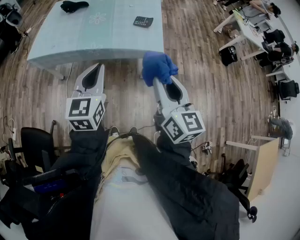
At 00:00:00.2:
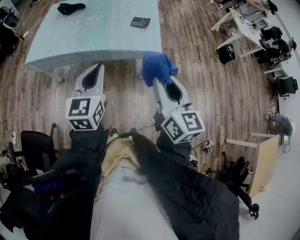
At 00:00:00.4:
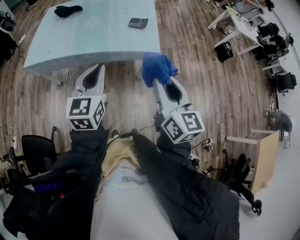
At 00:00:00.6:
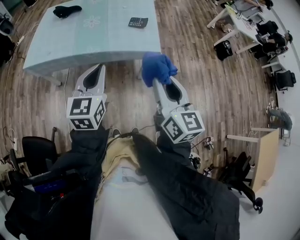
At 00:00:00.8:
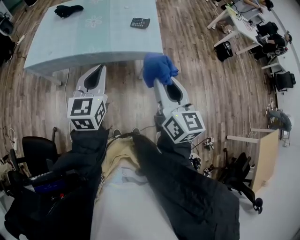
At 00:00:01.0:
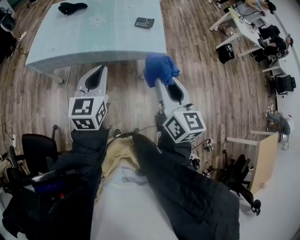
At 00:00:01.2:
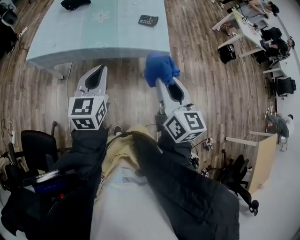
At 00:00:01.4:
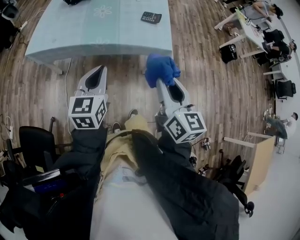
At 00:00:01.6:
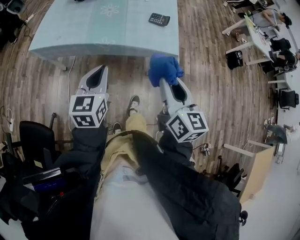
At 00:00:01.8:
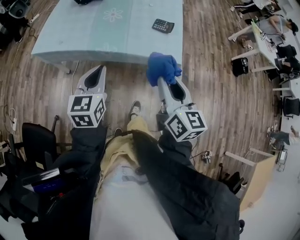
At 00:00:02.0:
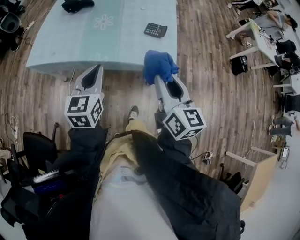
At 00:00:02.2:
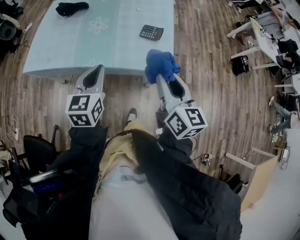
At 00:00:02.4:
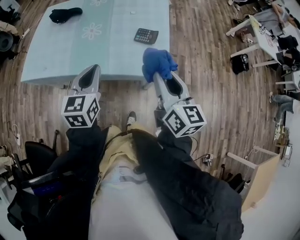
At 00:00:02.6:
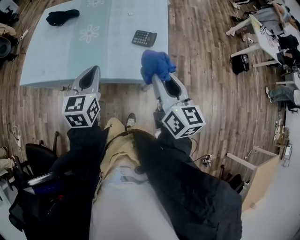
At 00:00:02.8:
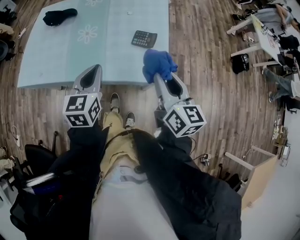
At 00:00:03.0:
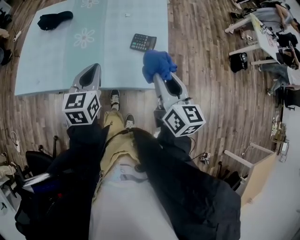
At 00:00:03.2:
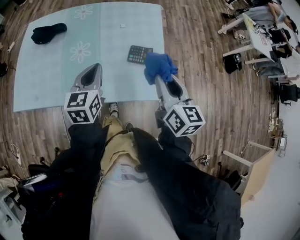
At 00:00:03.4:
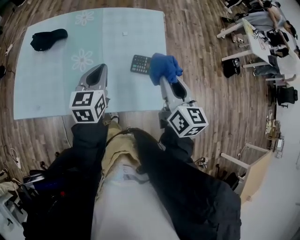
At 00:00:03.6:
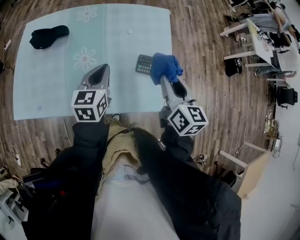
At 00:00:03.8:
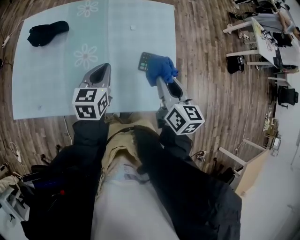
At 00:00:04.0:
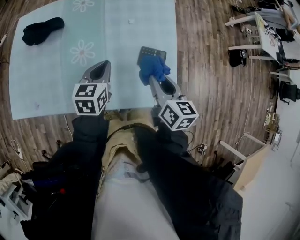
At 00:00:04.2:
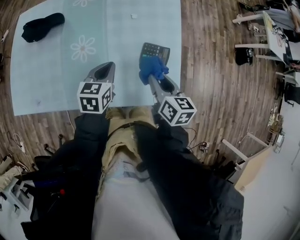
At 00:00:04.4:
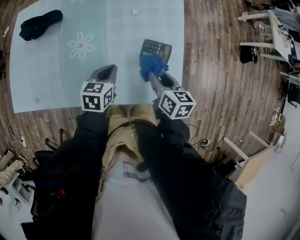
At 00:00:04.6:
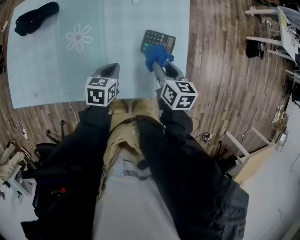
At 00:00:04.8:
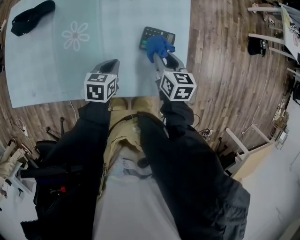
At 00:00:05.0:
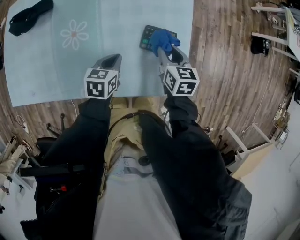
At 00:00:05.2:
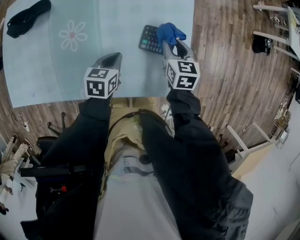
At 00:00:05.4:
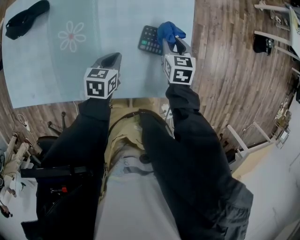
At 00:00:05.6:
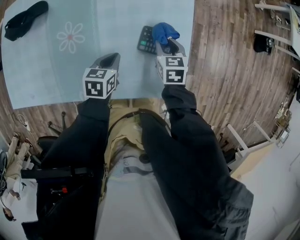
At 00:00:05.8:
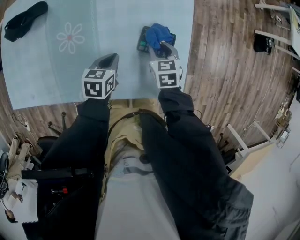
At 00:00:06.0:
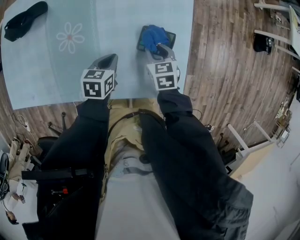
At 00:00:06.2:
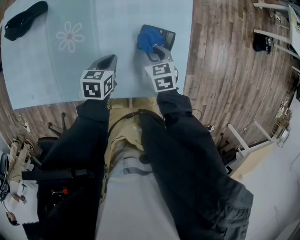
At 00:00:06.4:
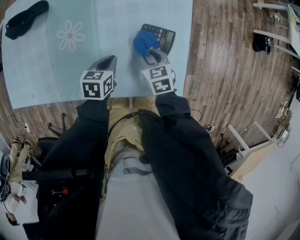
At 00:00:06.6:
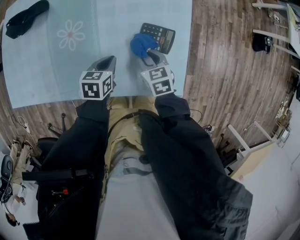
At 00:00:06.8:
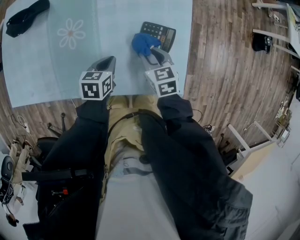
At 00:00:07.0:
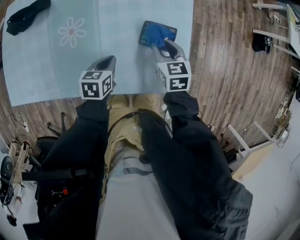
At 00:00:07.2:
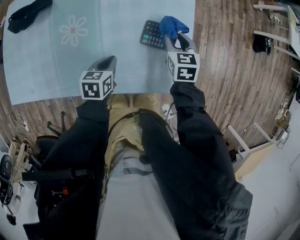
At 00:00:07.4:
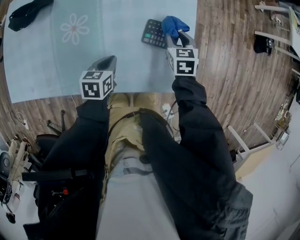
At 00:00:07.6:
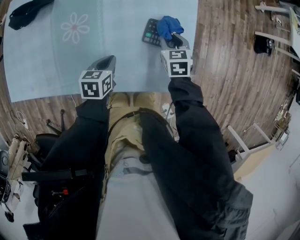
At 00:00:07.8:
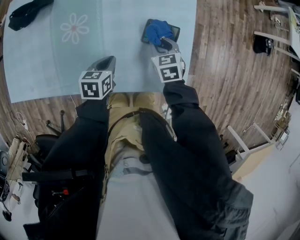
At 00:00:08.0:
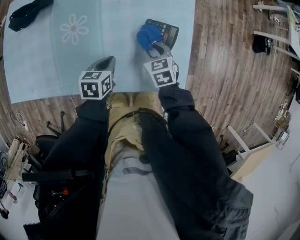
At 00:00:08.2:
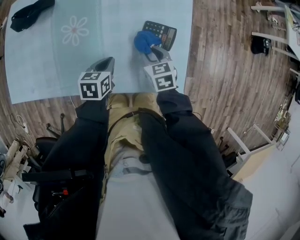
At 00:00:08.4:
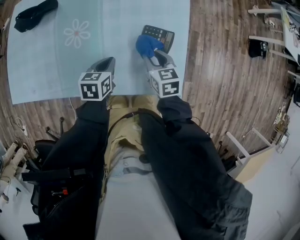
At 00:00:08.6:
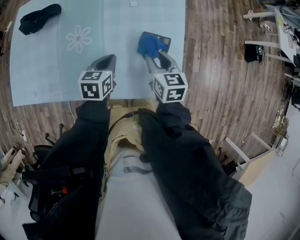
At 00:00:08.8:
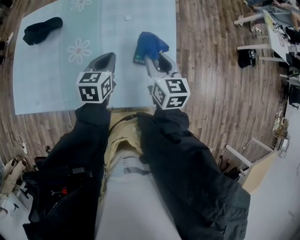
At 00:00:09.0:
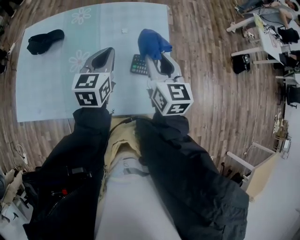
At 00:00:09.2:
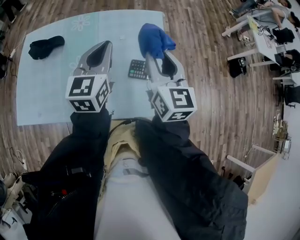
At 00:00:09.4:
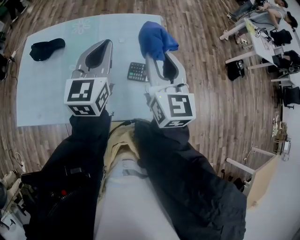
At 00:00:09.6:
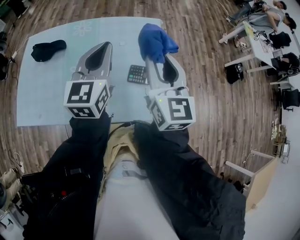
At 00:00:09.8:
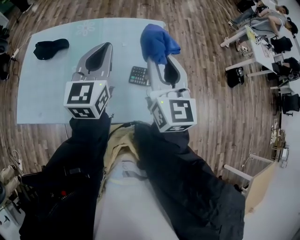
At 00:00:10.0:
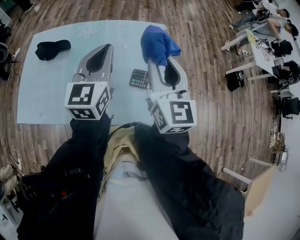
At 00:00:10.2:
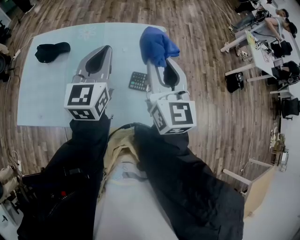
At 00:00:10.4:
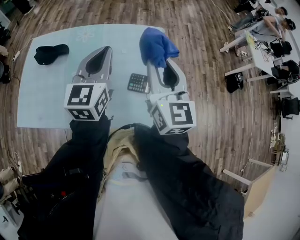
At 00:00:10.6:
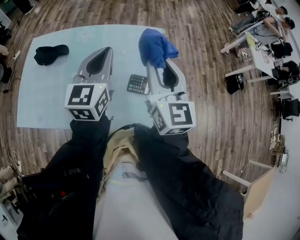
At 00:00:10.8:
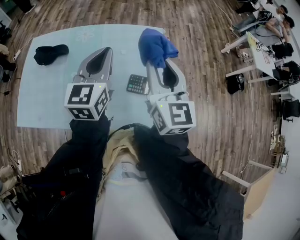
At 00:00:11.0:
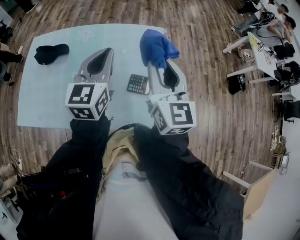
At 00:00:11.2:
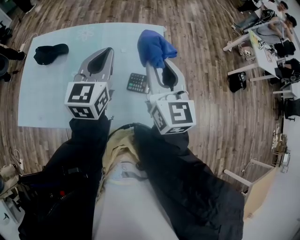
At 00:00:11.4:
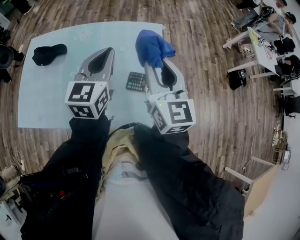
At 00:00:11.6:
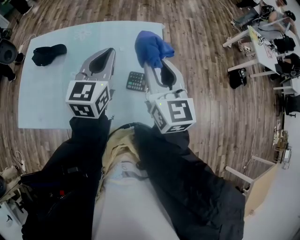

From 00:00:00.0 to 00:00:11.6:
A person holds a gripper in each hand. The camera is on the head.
From 00:00:00.0 to 00:00:01.4: The left gripper moves to the left and downward, roughly 10 cm. The right gripper travels to the left by roughly 5 cm.
From 00:00:01.4 to 00:00:02.8: The two grippers go about 30 cm forward.
From 00:00:02.8 to 00:00:04.4: The left gripper travels forward and downward by about 25 cm, and swivels about 30 degrees. Meanwhile the right gripper shifts about 30 cm forward, downward and to the left, and swivels roughly 30 degrees.
From 00:00:04.4 to 00:00:05.8: The left gripper moves downward, some 10 cm. Meanwhile the right gripper shifts approximately 15 cm downward and forward, and rotates roughly 30 degrees.
From 00:00:05.8 to 00:00:07.2: The right gripper travels backward and back again, approximately 5 cm each way.
From 00:00:07.2 to 00:00:08.8: The left gripper shifts some 15 cm upward and forward, and swivels about 20 degrees, while the right gripper shifts roughly 15 cm upward, and changes its angle by about 20 degrees.
From 00:00:08.8 to 00:00:10.2: The grippers both shift upward by about 25 cm. The left gripper tilts its fingers approximately 30 degrees upward, while the right gripper rotates roughly 30 degrees.
From 00:00:10.2 to 00:00:11.6: There are only small adjustments of the grippers.

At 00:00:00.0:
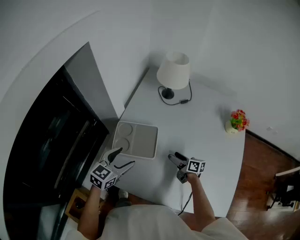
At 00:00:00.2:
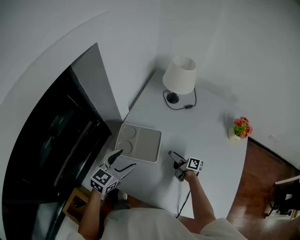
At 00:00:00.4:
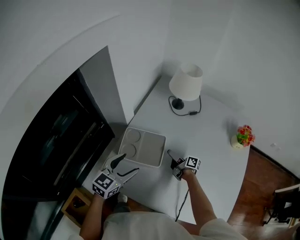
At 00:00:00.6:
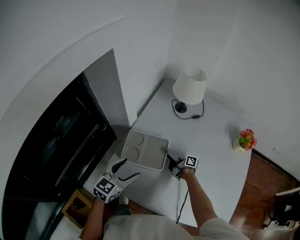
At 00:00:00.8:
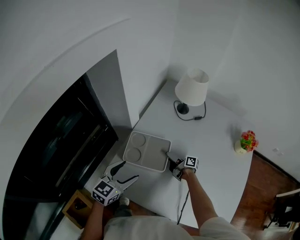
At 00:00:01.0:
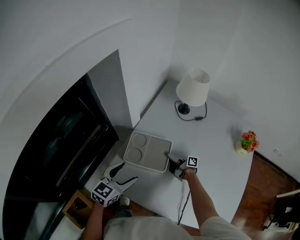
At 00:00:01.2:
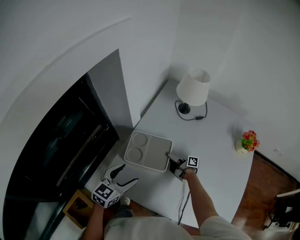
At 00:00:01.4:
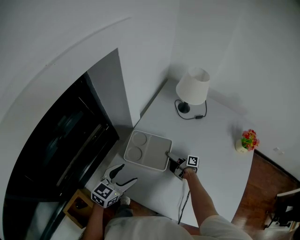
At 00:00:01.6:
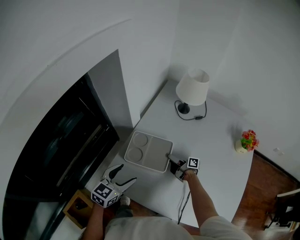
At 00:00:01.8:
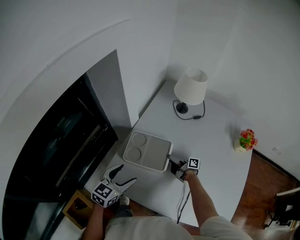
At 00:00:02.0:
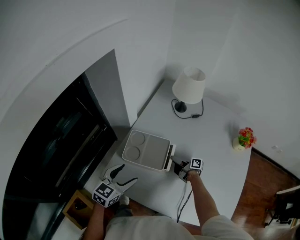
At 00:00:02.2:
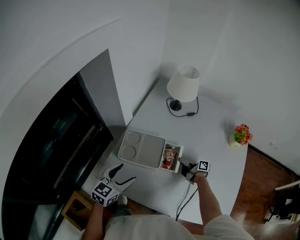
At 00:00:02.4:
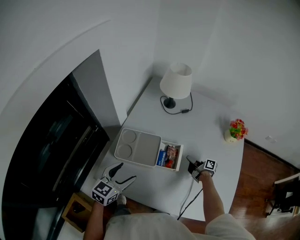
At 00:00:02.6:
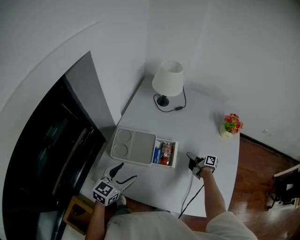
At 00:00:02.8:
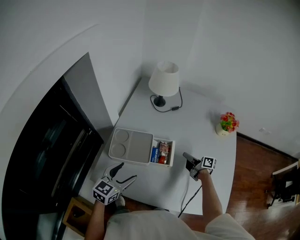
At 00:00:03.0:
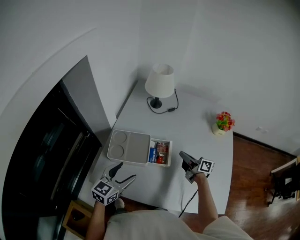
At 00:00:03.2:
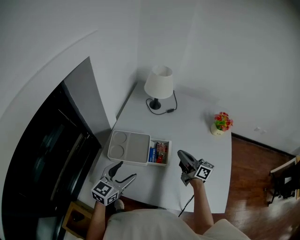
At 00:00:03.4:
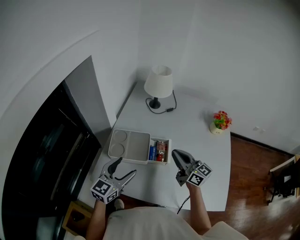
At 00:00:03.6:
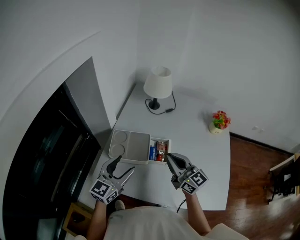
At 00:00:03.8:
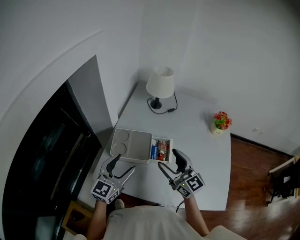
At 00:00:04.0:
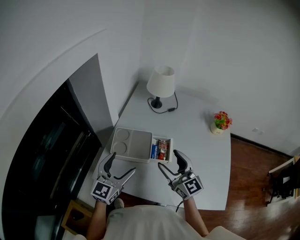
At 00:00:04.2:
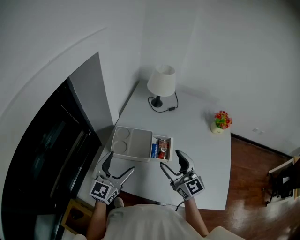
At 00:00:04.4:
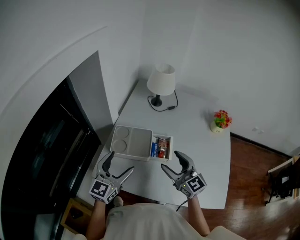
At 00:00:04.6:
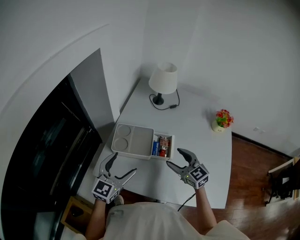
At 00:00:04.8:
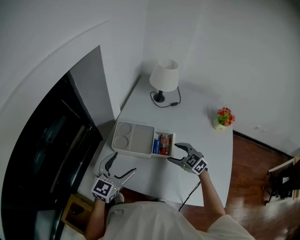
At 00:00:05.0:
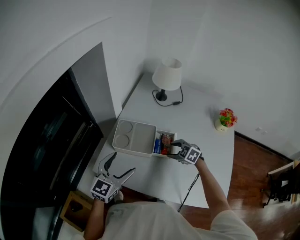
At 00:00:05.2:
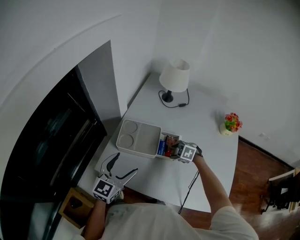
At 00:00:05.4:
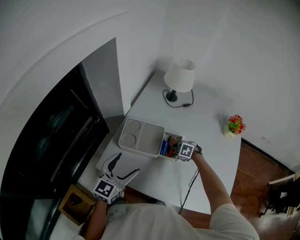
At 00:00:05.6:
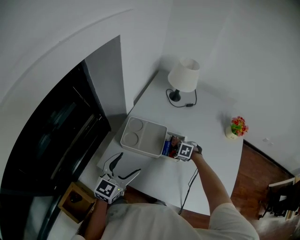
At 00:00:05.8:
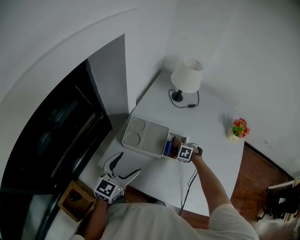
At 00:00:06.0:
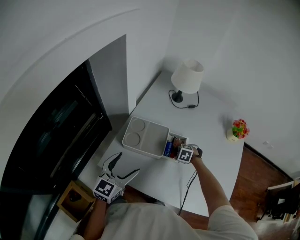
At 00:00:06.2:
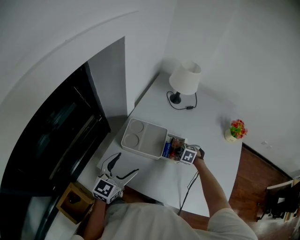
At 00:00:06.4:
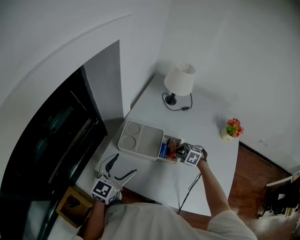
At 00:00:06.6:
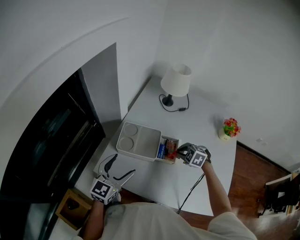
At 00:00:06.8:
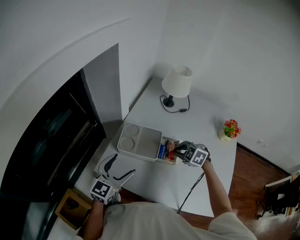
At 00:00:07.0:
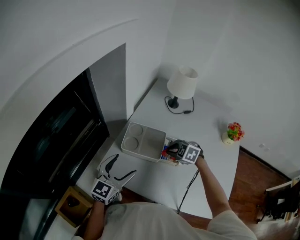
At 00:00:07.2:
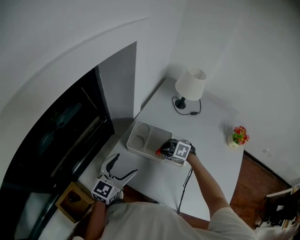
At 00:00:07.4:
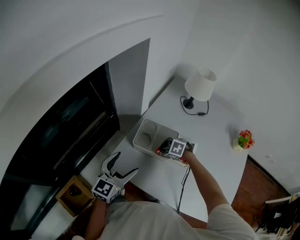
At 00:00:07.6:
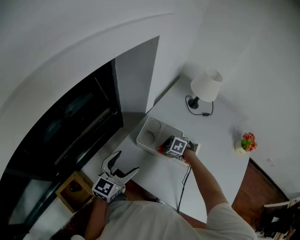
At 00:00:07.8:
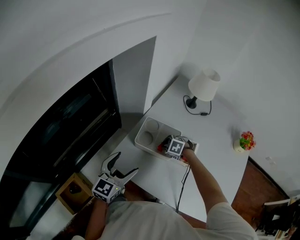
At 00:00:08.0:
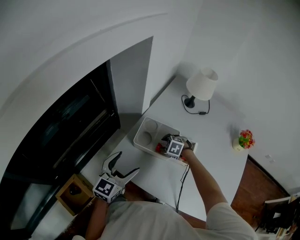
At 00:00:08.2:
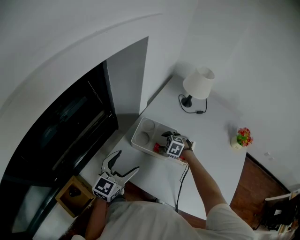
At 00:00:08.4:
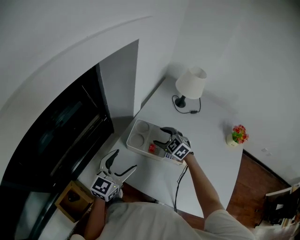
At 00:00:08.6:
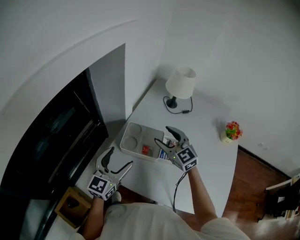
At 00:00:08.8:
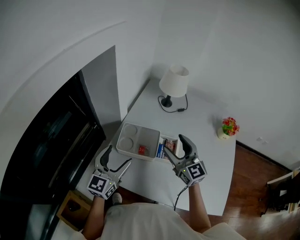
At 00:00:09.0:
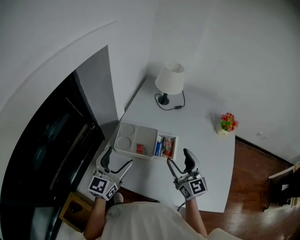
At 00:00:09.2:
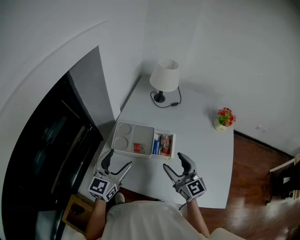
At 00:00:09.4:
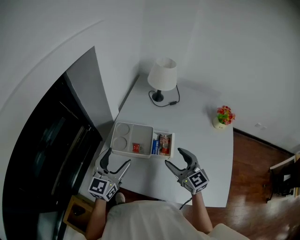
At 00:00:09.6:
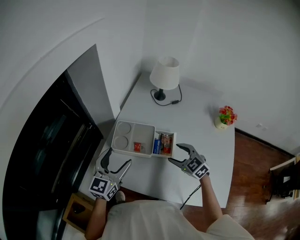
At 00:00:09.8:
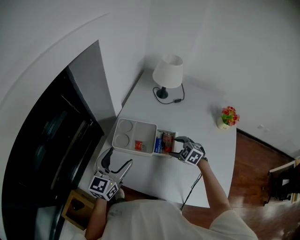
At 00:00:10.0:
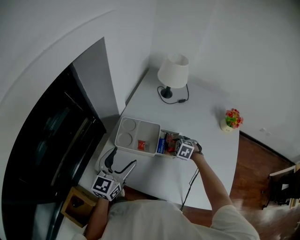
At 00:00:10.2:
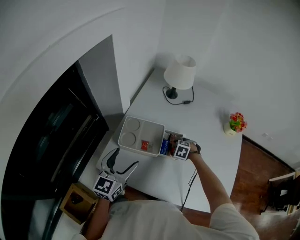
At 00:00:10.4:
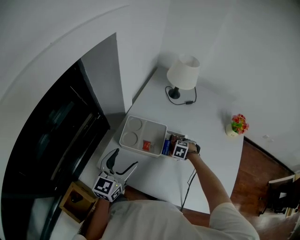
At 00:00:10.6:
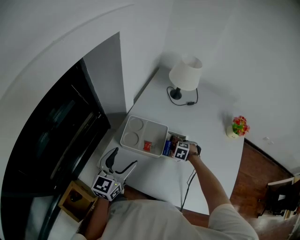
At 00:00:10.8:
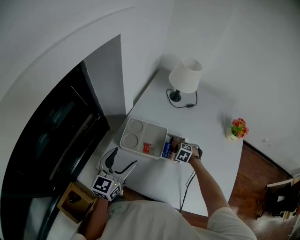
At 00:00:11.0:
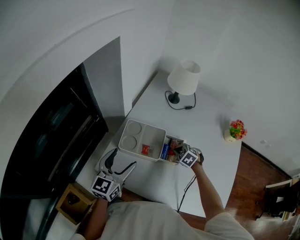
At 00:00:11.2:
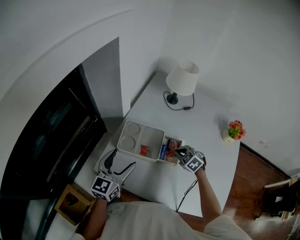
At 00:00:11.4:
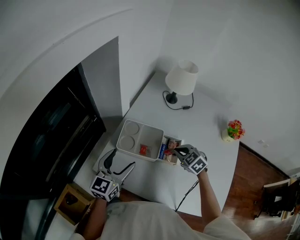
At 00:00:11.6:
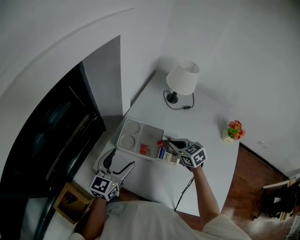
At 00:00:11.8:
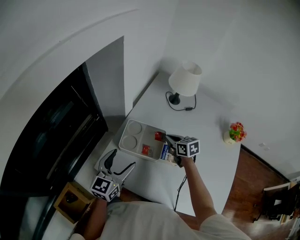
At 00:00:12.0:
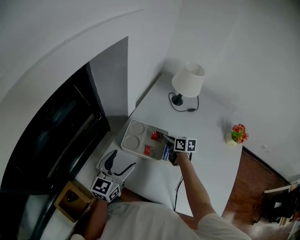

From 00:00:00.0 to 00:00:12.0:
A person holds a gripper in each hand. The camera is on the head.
From 00:00:00.0 to 00:00:01.6: The right gripper is displaced to the left and forward by approximately 10 cm, swivels approximately 30 degrees, and closes its fingers. Meanwhile the left gripper shifts about 5 cm to the left.
From 00:00:01.6 to 00:00:03.0: The right gripper heads to the right, upward and backward, covering about 25 cm, rotates about 30 degrees, and closes. The left gripper travels to the right by about 10 cm.
From 00:00:03.0 to 00:00:04.4: The left gripper heads upward, covering about 10 cm, and turns by some 20 degrees; the right gripper heads upward, to the left and backward, covering about 20 cm, rotates around the line of its fingers by about 60 degrees, counterclockwise from behind, and opens.
From 00:00:04.4 to 00:00:06.0: The right gripper moves downward, approximately 30 cm, angles its fingers downward, by some 70 degrees, and closes; the left gripper moves about 5 cm.
From 00:00:06.0 to 00:00:07.6: The right gripper reaches roughly 15 cm upward, then returns. The left gripper shifts by approximately 5 cm.
From 00:00:07.6 to 00:00:09.0: The right gripper goes some 25 cm upward, angles its fingers upward, by about 70 degrees, and opens up. The left gripper moves approximately 10 cm.
From 00:00:09.0 to 00:00:10.4: The right gripper travels downward by about 35 cm, and tips its fingers downward by roughly 80 degrees.
From 00:00:10.4 to 00:00:12.0: The right gripper goes roughly 15 cm upward, points its fingers about 50 degrees further upward, and closes up.
